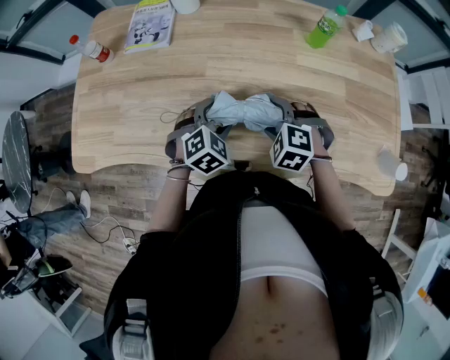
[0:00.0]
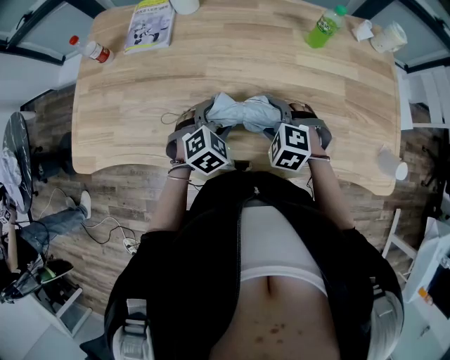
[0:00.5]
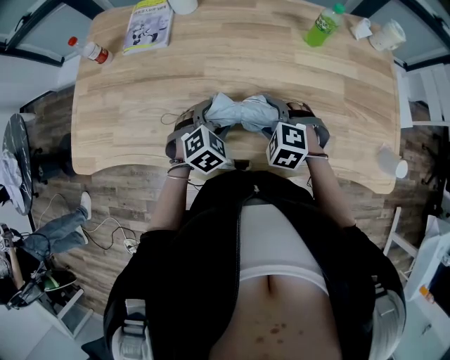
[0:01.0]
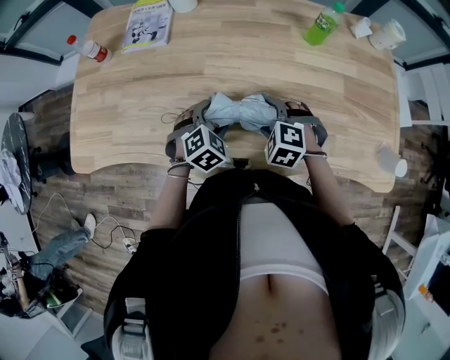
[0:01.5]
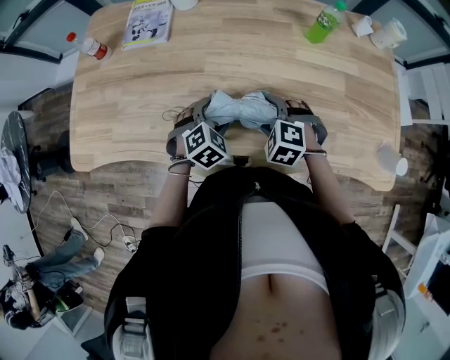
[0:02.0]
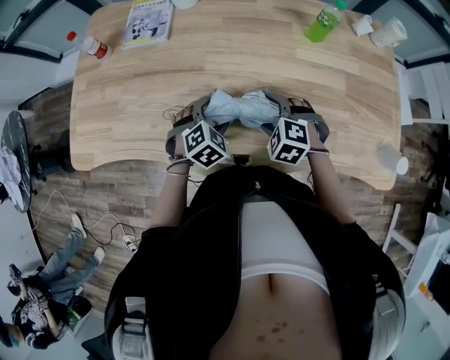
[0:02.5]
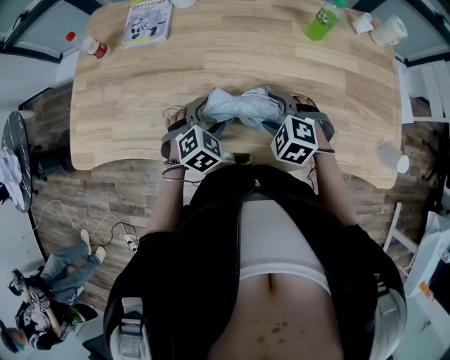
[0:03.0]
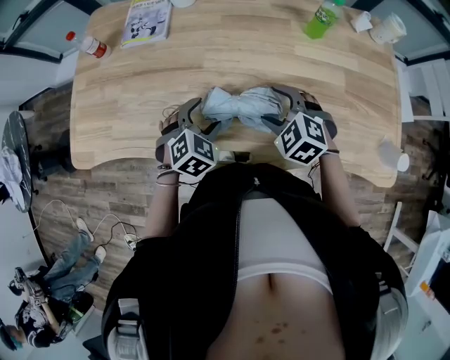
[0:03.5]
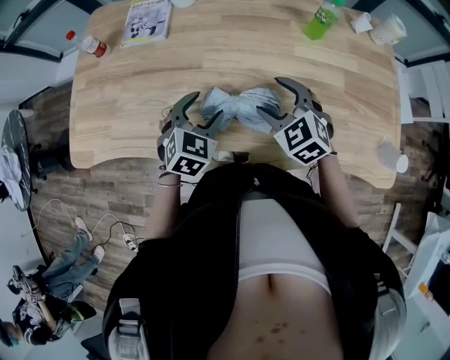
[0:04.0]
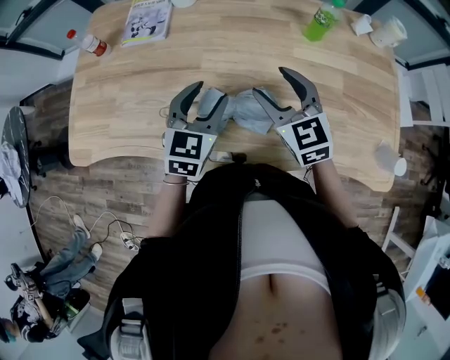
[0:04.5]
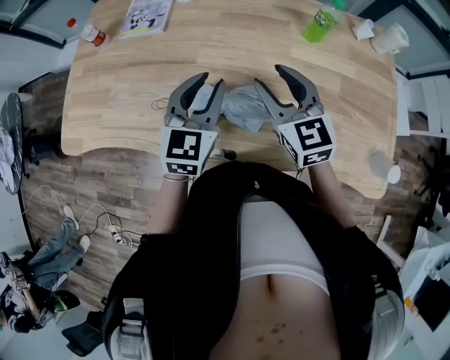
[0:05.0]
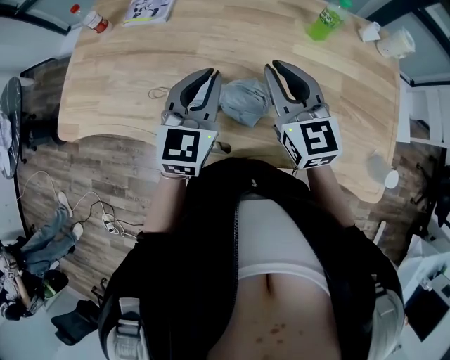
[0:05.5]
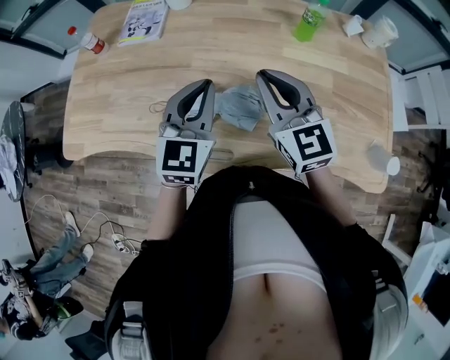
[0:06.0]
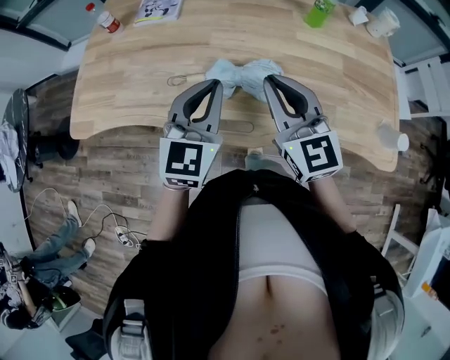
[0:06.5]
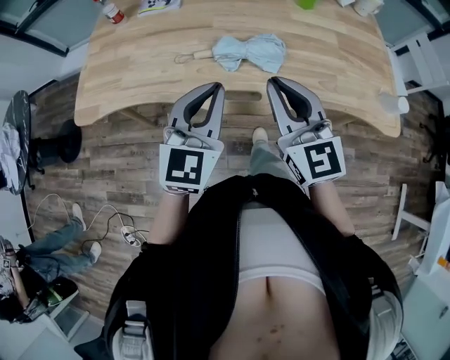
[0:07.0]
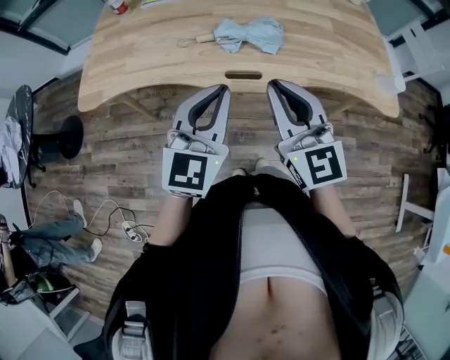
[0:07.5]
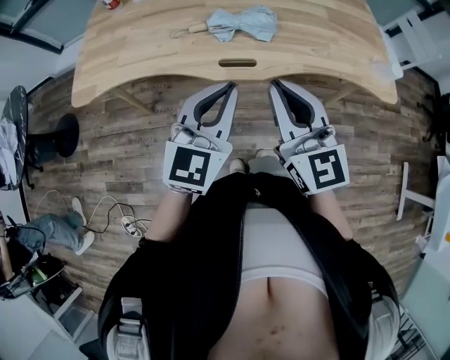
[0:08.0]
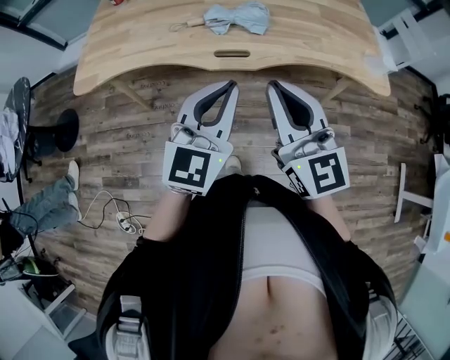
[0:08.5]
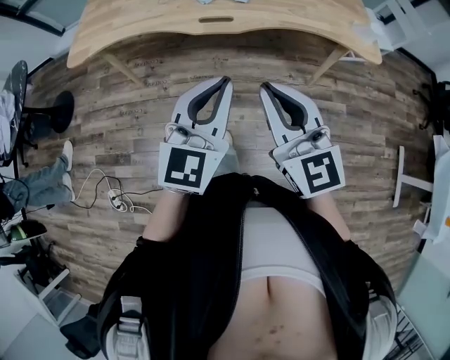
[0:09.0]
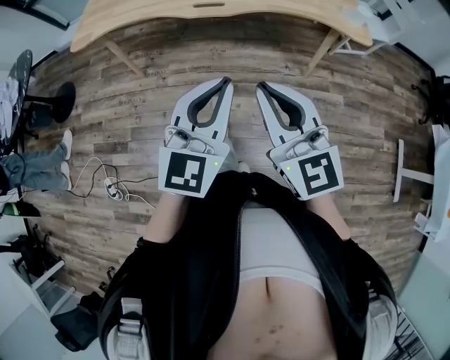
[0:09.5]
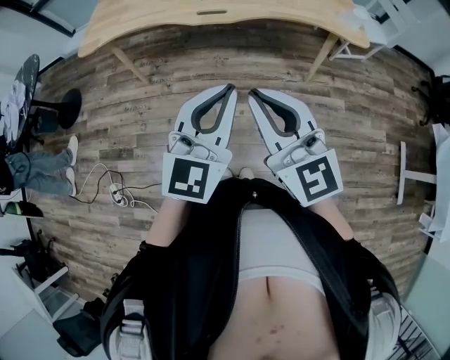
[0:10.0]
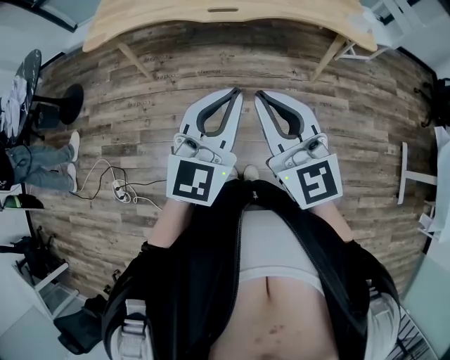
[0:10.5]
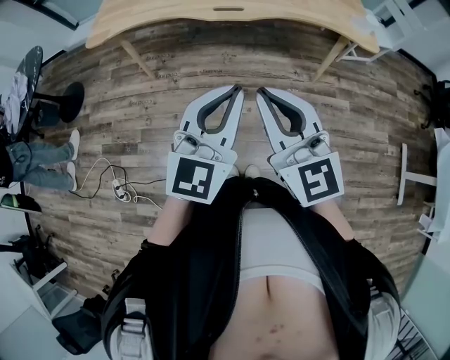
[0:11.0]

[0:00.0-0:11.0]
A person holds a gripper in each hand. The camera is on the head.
0:00.0 to 0:02.0: The grippers stay close to where they were, moving slightly.
0:02.0 to 0:03.5: The right gripper is displaced upward by roughly 5 cm.
0:03.5 to 0:05.5: The left gripper moves upward and to the right, about 15 cm, tips its fingers upward by about 40 degrees, and closes up; the right gripper shifts roughly 15 cm upward, tilts its fingers approximately 40 degrees upward, and closes up.
0:05.5 to 0:07.5: The two grippers go roughly 30 cm backward.
0:07.5 to 0:09.0: The left gripper goes about 20 cm backward and to the right. The right gripper moves backward, roughly 20 cm.
0:09.0 to 0:11.0: The two grippers go roughly 15 cm backward.

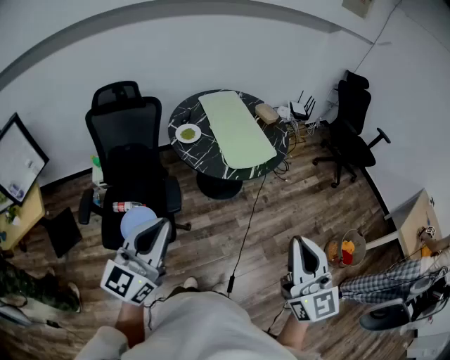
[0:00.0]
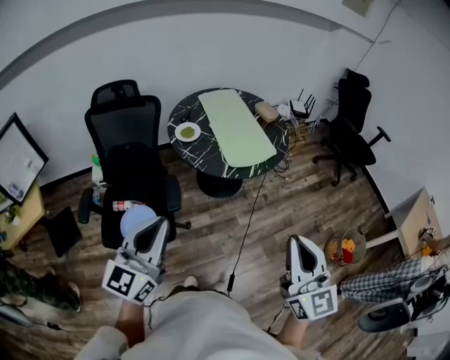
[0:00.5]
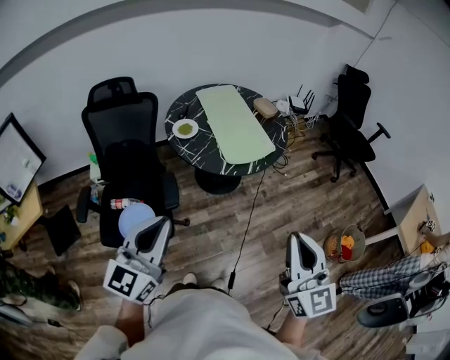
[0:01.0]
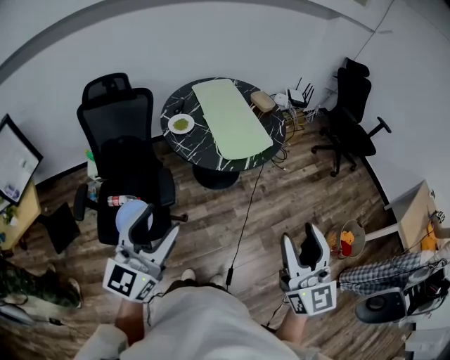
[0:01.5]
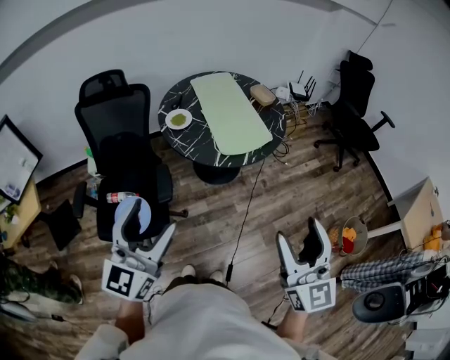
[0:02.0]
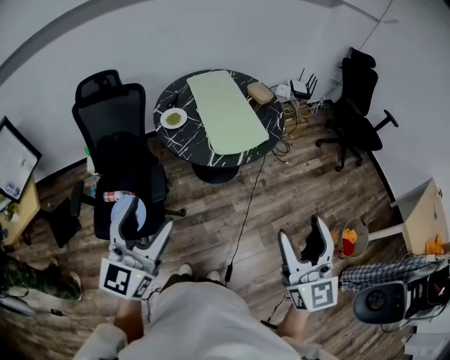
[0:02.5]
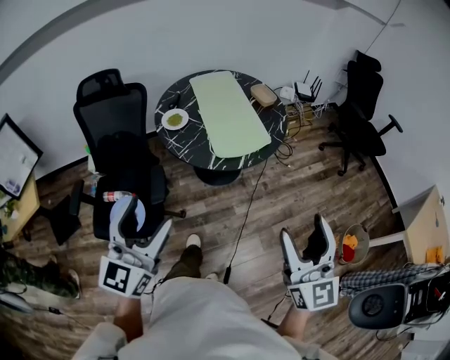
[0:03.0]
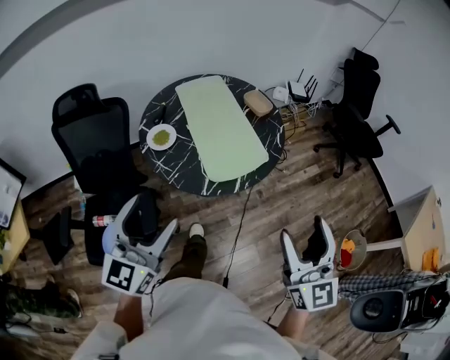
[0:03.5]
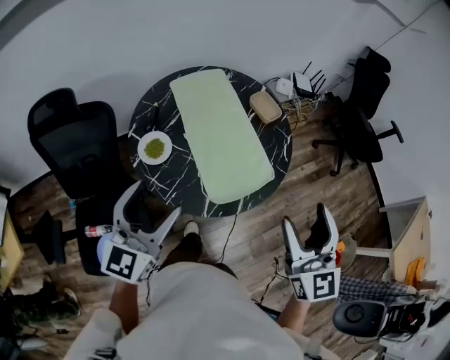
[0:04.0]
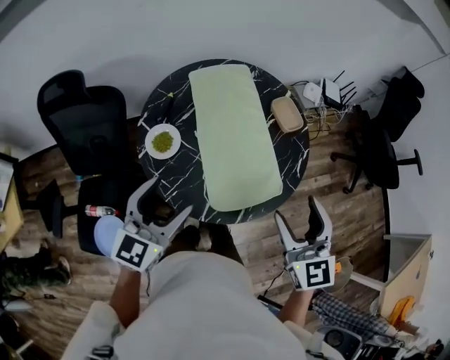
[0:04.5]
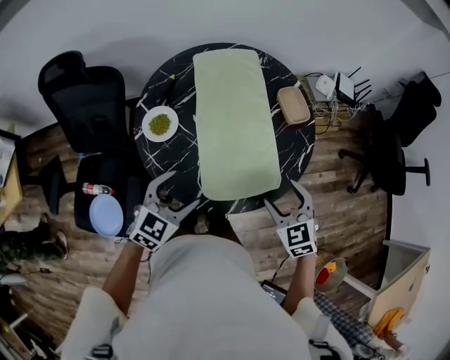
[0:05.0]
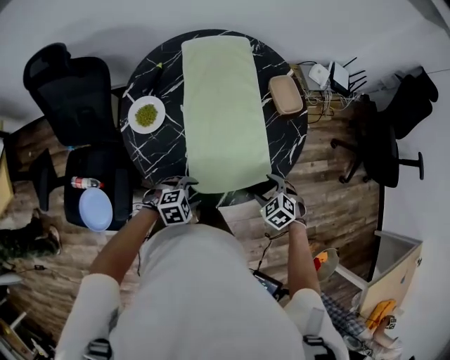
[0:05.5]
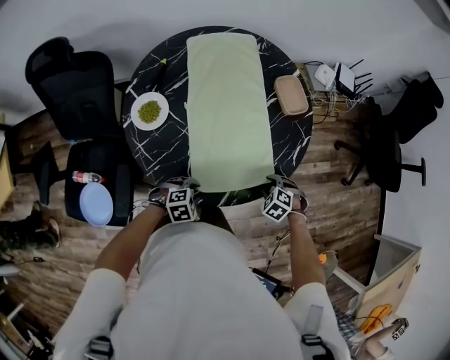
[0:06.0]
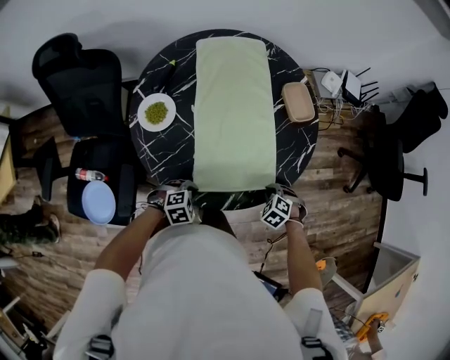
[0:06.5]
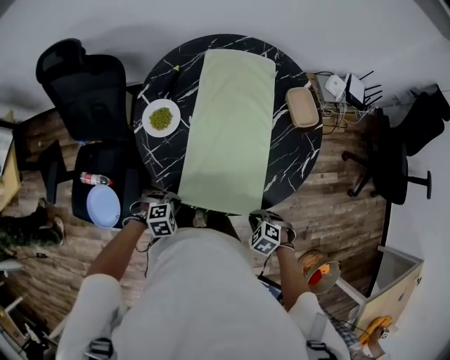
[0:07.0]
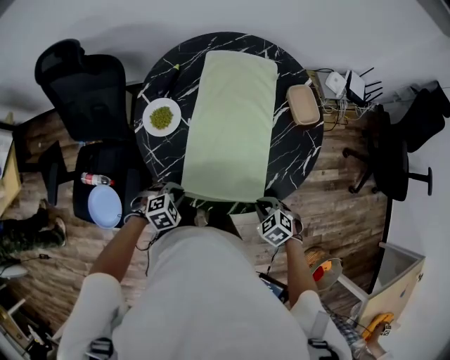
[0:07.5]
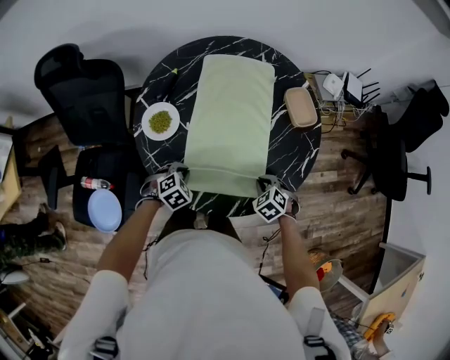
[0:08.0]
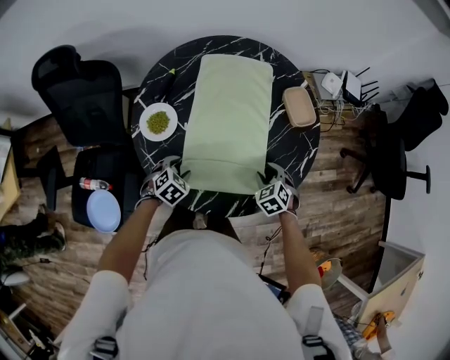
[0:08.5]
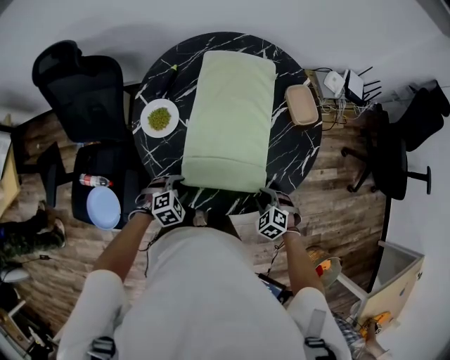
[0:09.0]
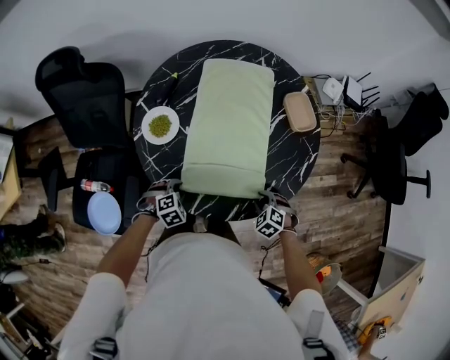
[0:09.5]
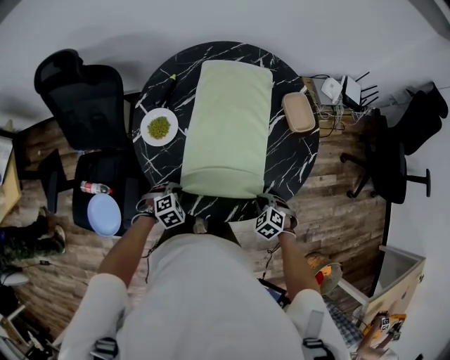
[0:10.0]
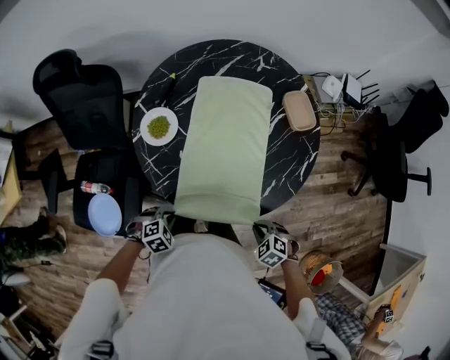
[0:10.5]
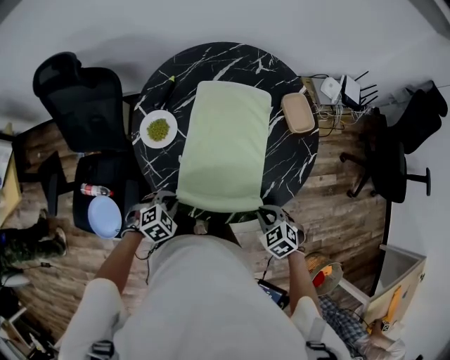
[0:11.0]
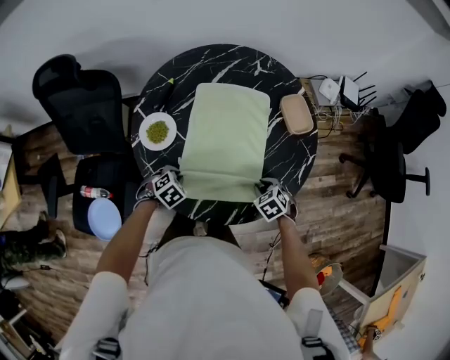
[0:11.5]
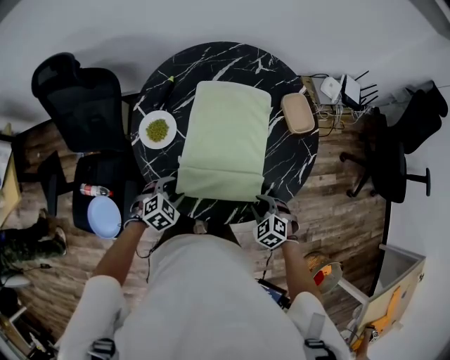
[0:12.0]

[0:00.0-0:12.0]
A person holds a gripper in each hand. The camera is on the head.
0:00.0 to 0:02.0: The right gripper shifts by approximately 5 cm, and opens its fingers, while the left gripper opens.
0:02.0 to 0:04.0: The two grippers go some 40 cm forward.
0:04.0 to 0:06.0: Both grippers travel together downward, roughly 40 cm. The left gripper tilts its fingers roughly 60 degrees downward, and closes up. Meanwhile the right gripper angles its fingers downward, by some 70 degrees, and closes.
0:06.0 to 0:08.0: The left gripper ends up about 15 cm from where it was, and swivels roughly 20 degrees. The right gripper moves approximately 10 cm, and closes up.
0:08.0 to 0:10.0: The grippers both shift backward by about 5 cm. The left gripper opens, then closes once more. Meanwhile the right gripper opens, then closes once more.
0:10.0 to 0:12.0: The left gripper is displaced upward by some 5 cm, and opens.

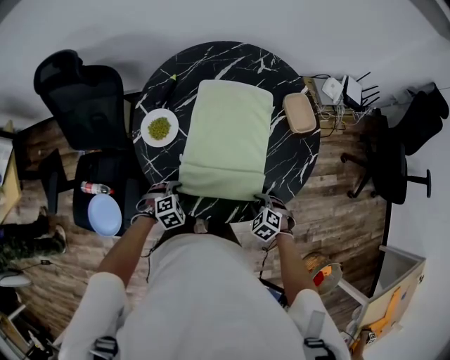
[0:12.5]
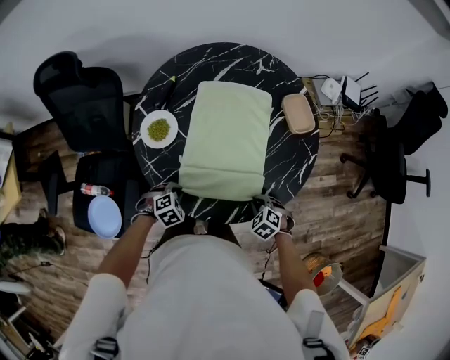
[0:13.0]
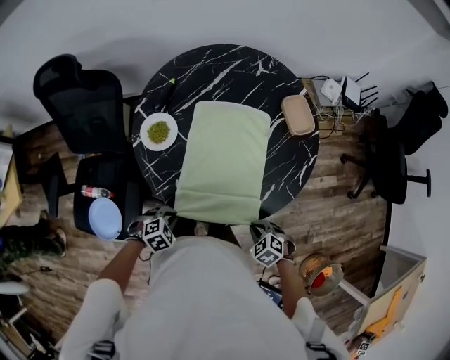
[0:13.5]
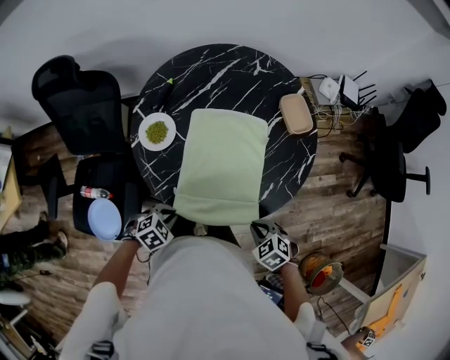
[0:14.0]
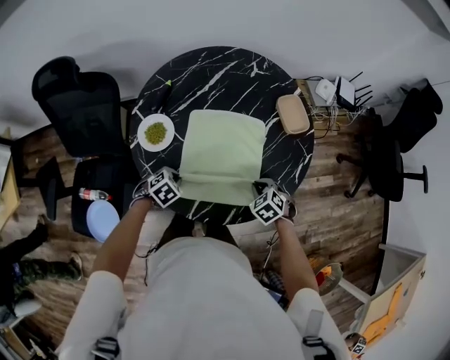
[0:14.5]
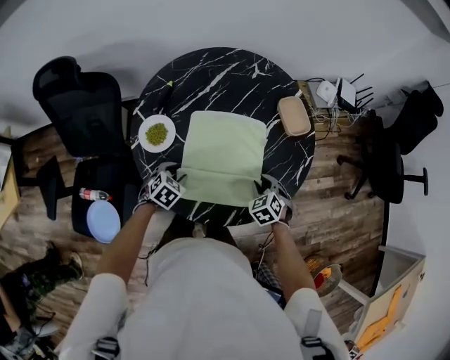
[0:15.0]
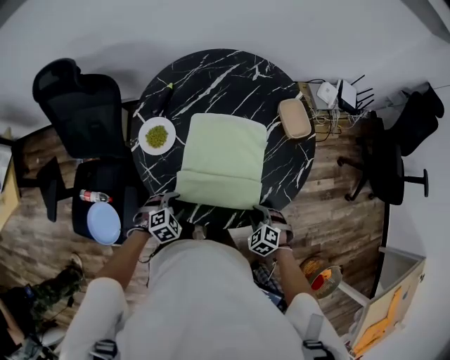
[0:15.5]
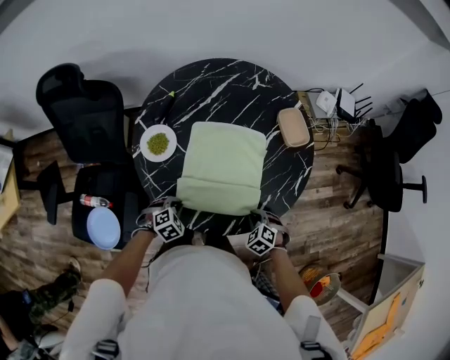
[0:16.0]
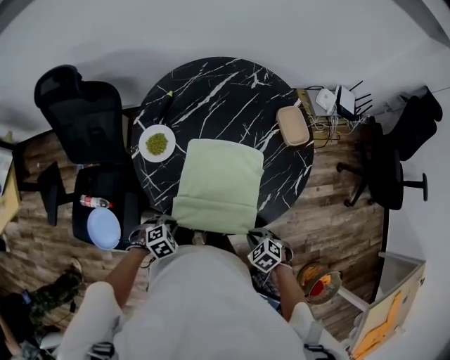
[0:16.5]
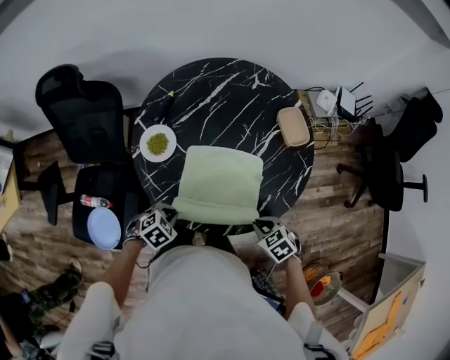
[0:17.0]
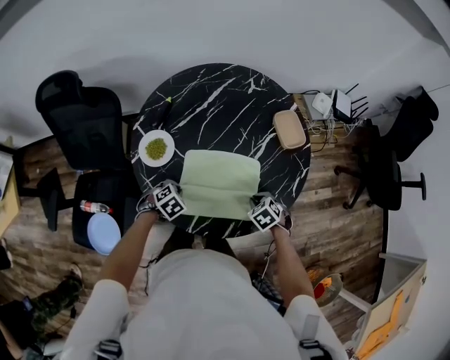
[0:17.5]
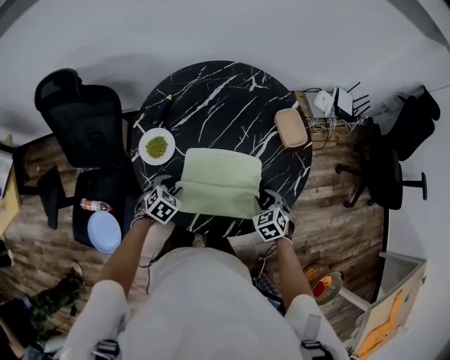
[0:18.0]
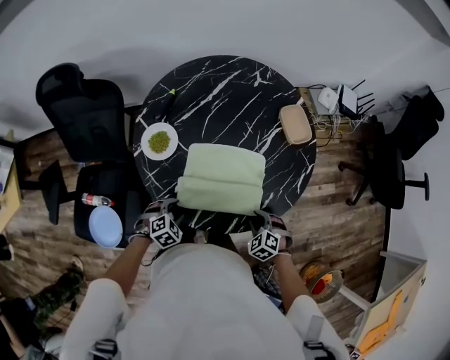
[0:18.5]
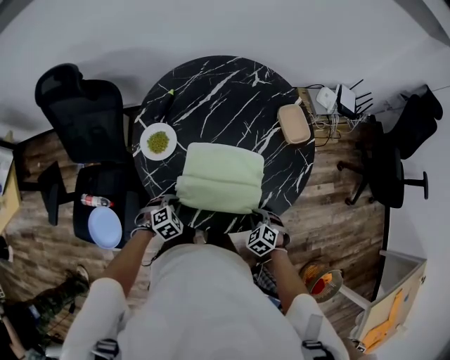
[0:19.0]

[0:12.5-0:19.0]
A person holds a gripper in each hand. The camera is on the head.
0:12.5 to 0:14.5: The right gripper changes place by approximately 10 cm. The left gripper moves roughly 10 cm, and closes.
0:14.5 to 0:17.0: The right gripper shifts by approximately 10 cm. The left gripper shifts by approximately 10 cm, and opens, then closes once more.
0:17.0 to 0:19.0: Both grippers move downward, roughly 5 cm. The left gripper opens, then closes once more; the right gripper rotates about 20 degrees, and opens, then closes once more.
